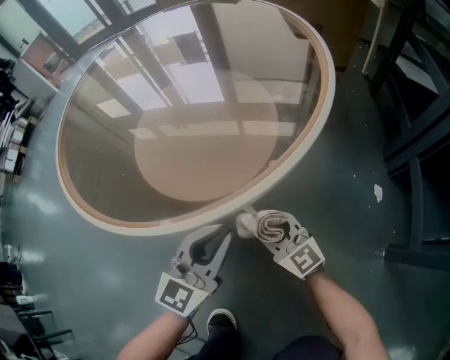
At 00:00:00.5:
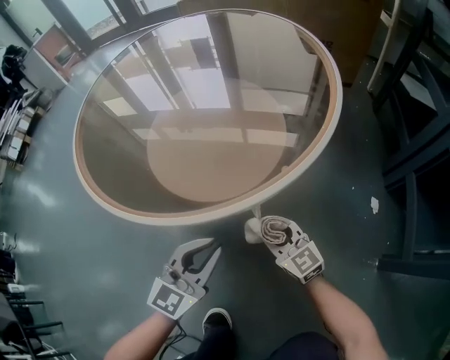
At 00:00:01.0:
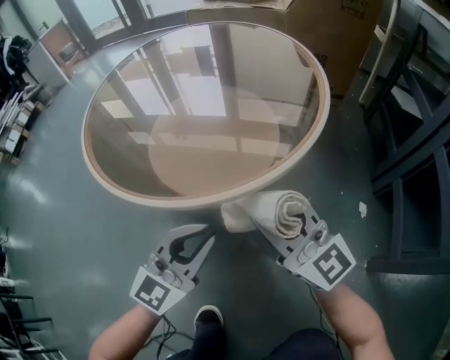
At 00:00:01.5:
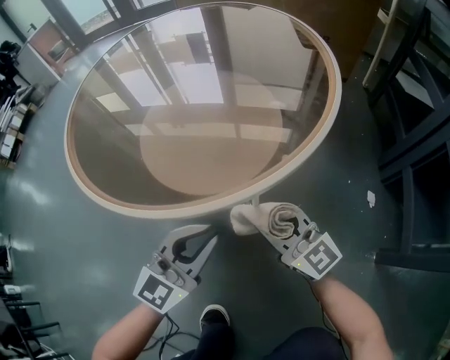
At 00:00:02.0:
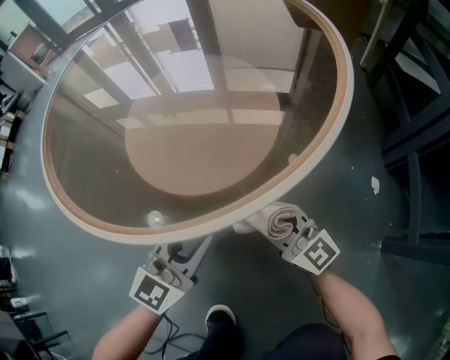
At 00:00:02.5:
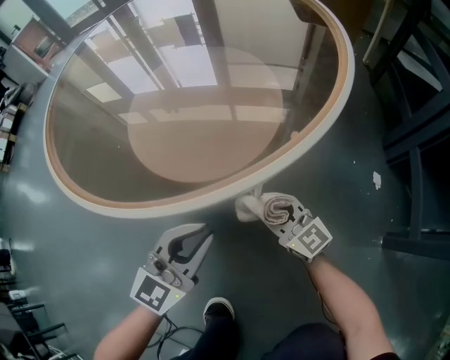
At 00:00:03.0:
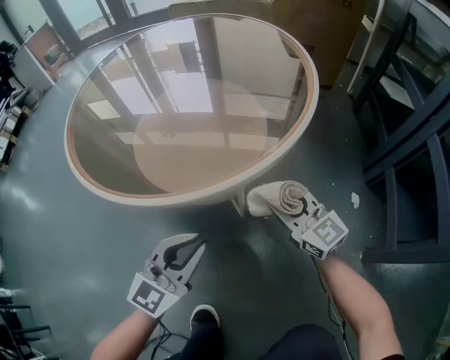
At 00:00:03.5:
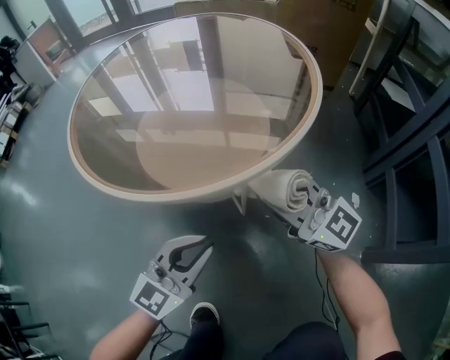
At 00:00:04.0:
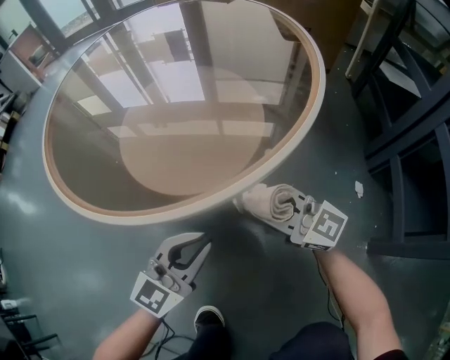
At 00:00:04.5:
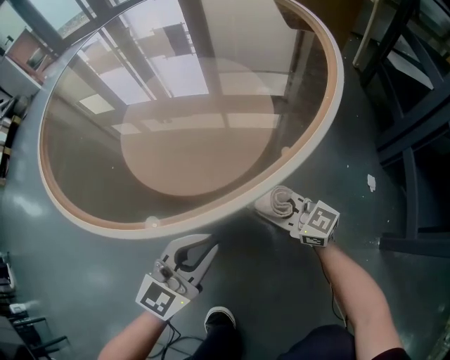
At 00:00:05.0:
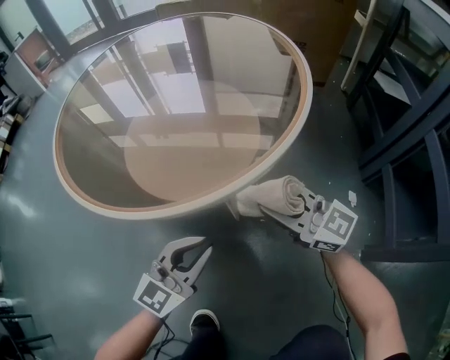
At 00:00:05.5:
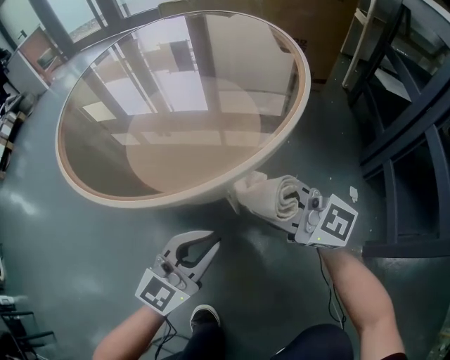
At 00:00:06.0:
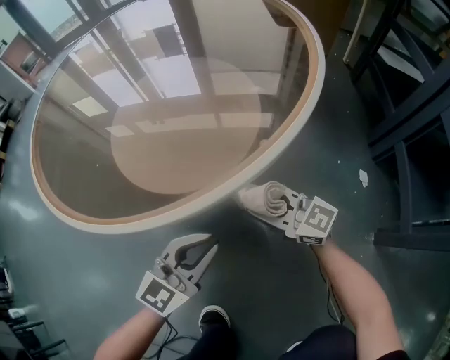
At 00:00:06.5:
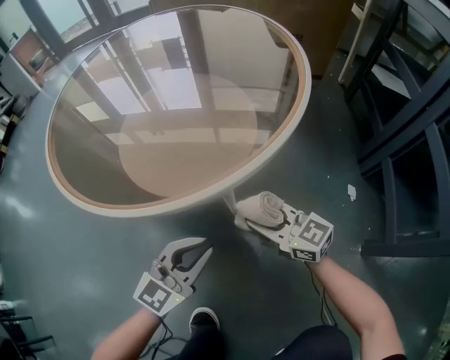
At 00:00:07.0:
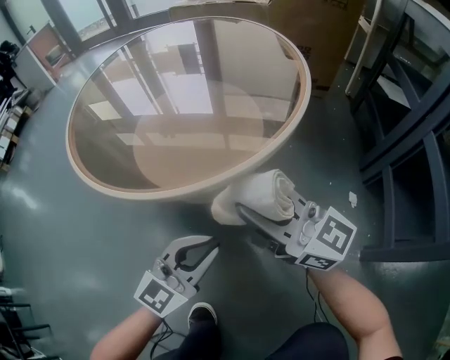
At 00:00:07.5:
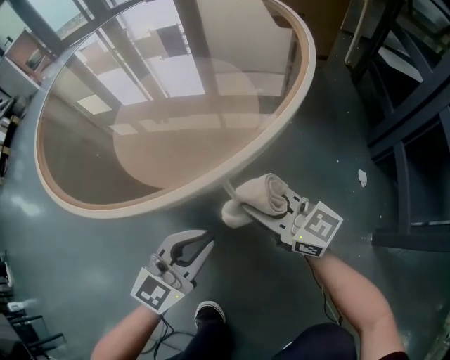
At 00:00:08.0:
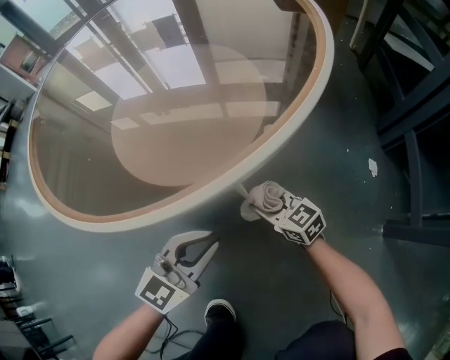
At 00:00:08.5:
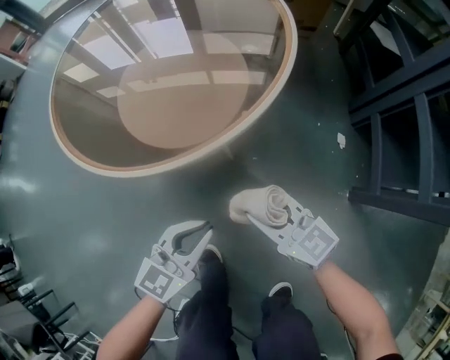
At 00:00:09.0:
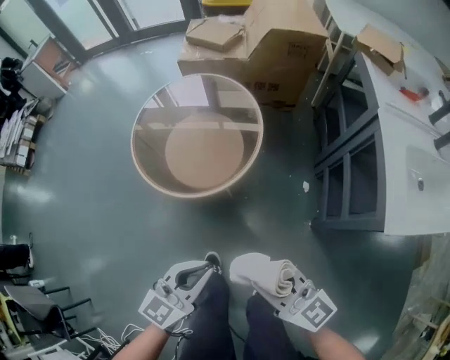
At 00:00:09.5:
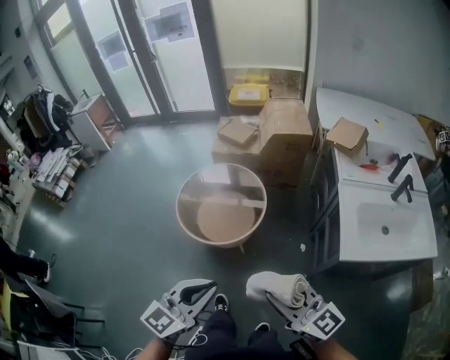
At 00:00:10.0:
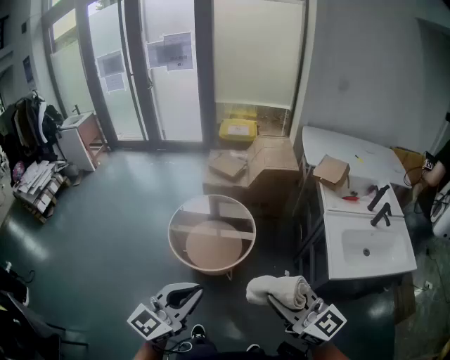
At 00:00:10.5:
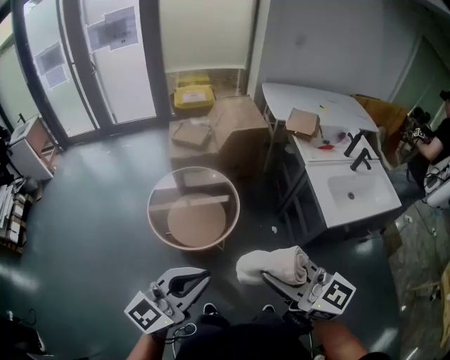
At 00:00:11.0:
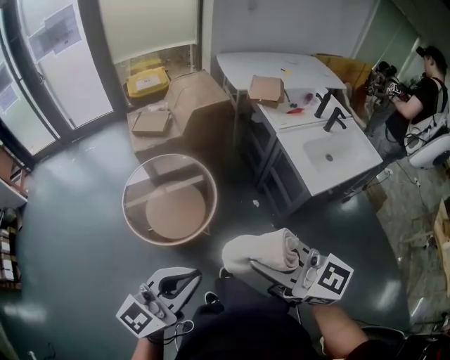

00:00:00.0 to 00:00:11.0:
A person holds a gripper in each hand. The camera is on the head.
00:00:00.0 to 00:00:02.0: The left gripper reaches approximately 10 cm upward, then returns, while the right gripper travels upward and back again, some 25 cm each way.
00:00:02.0 to 00:00:03.5: The left gripper heads backward, covering about 5 cm, while the right gripper travels upward by approximately 15 cm.
00:00:03.5 to 00:00:05.5: The right gripper reaches approximately 25 cm downward, then returns.
00:00:05.5 to 00:00:07.5: The left gripper swings up and down, approximately 10 cm each way, with 2 reversals. Meanwhile the right gripper swings up and down, approximately 20 cm each way, with 2 reversals, and swivels some 20 degrees.
00:00:07.5 to 00:00:09.0: The left gripper is displaced upward by some 50 cm. Meanwhile the right gripper is displaced upward and backward by roughly 60 cm.
00:00:09.0 to 00:00:11.0: The grippers both shift upward by about 40 cm. The right gripper changes its angle by approximately 20 degrees; the left gripper turns by roughly 40 degrees.

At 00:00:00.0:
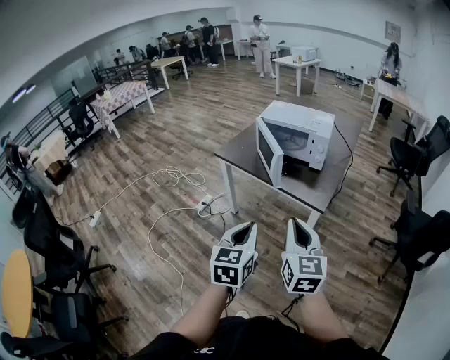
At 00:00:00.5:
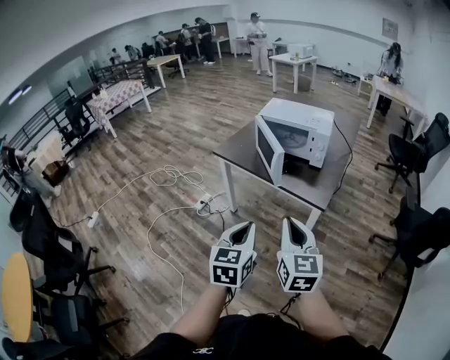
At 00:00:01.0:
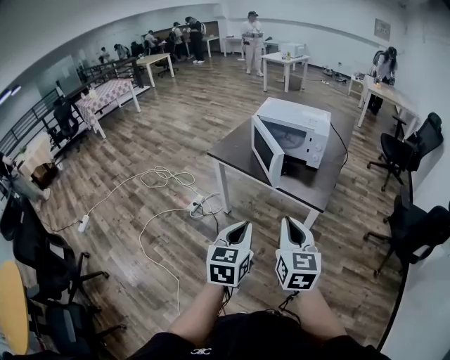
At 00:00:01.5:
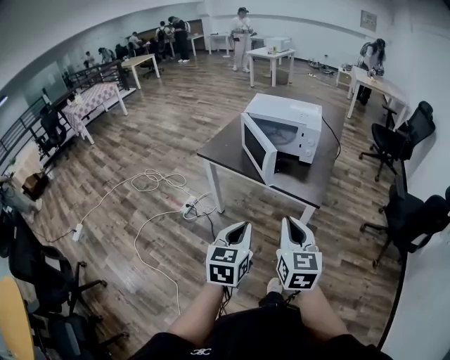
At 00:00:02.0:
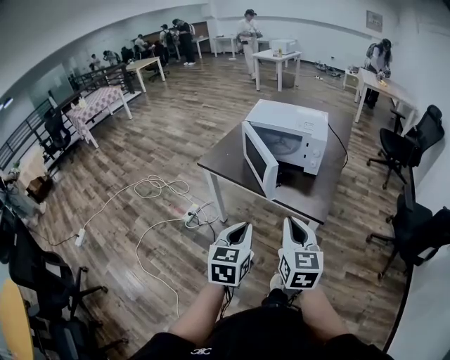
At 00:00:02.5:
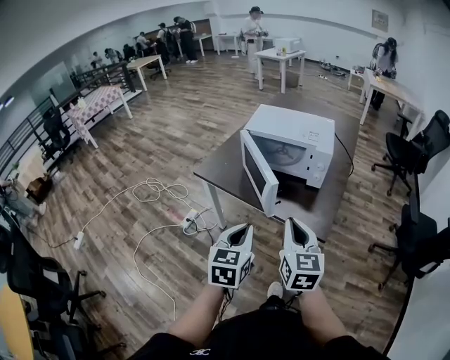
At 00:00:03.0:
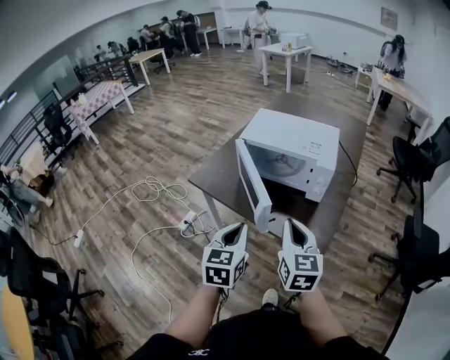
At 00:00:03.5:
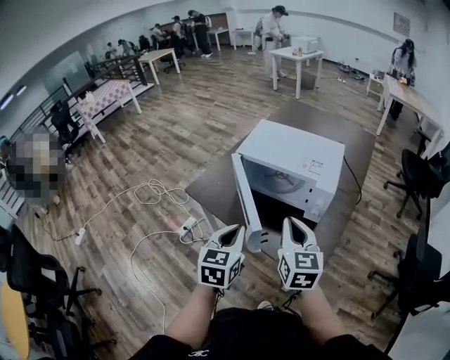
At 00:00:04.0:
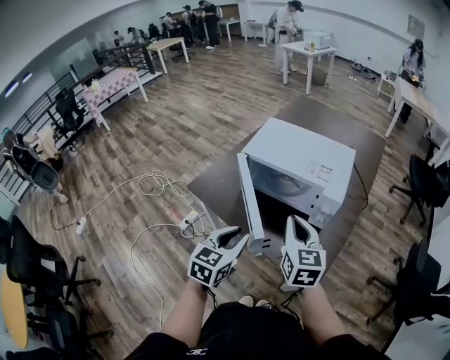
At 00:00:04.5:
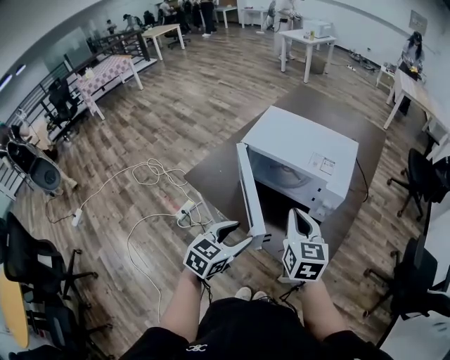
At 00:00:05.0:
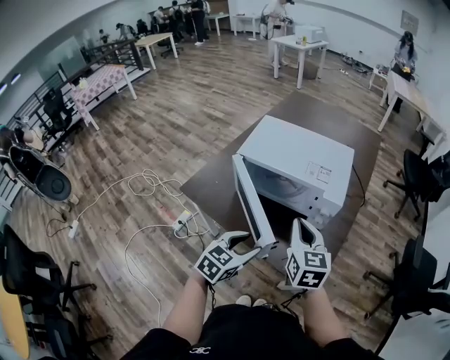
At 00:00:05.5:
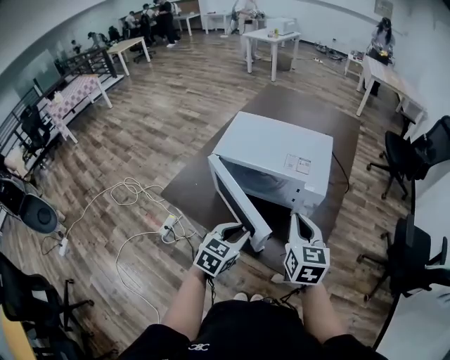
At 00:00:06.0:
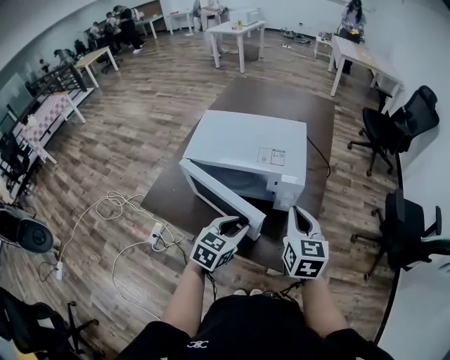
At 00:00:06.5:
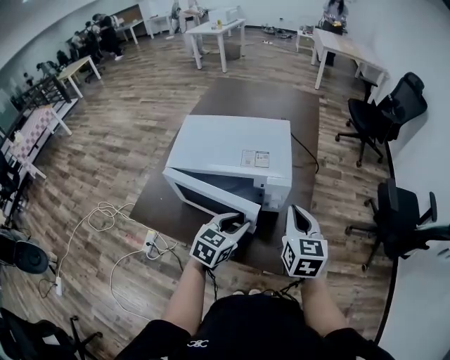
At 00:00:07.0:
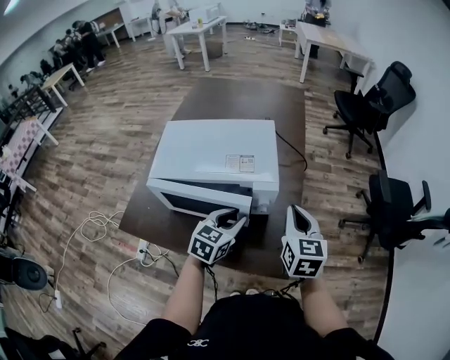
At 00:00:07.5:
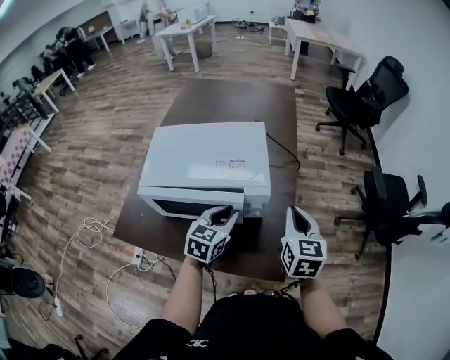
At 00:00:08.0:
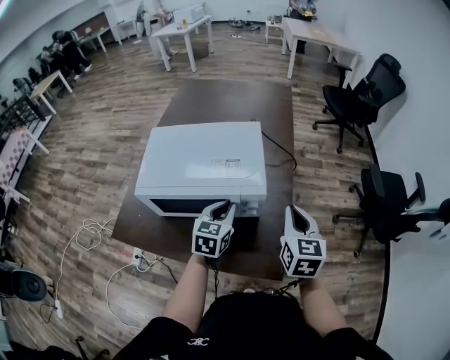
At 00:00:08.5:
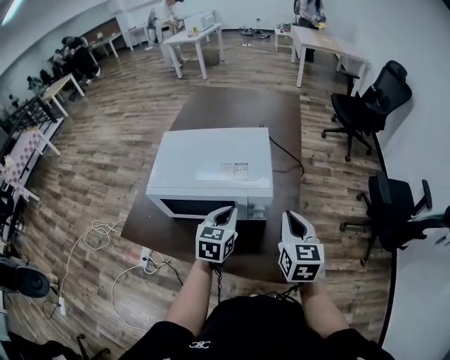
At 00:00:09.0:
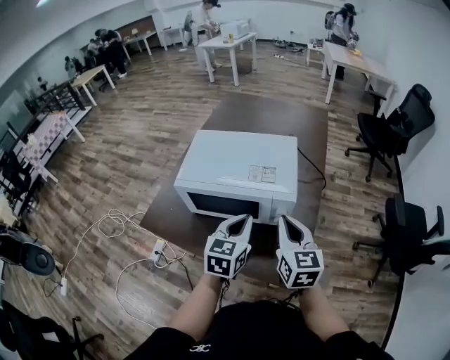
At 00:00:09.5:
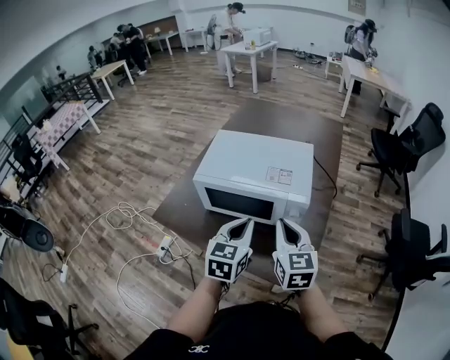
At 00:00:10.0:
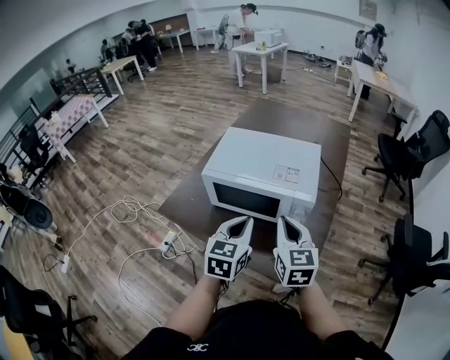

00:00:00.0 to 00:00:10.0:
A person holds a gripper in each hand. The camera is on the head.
00:00:00.0 to 00:00:02.0: The two grippers go some 15 cm forward.
00:00:02.0 to 00:00:04.0: Both grippers travel together forward, some 30 cm.
00:00:04.0 to 00:00:06.0: The right gripper travels to the right and forward by roughly 10 cm, and swivels about 20 degrees; the left gripper shifts about 15 cm forward, to the right and downward, rotates roughly 30 degrees, and opens, then closes again.
00:00:06.0 to 00:00:08.0: The left gripper shifts some 15 cm forward; the right gripper moves to the right and forward, roughly 10 cm.
00:00:08.0 to 00:00:10.0: The right gripper is displaced to the left and backward by about 20 cm, and turns by approximately 30 degrees, while the left gripper heads backward, upward and to the left, covering about 20 cm.

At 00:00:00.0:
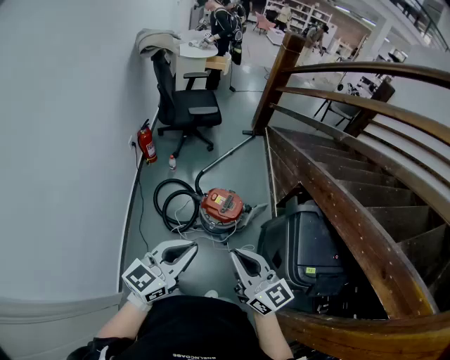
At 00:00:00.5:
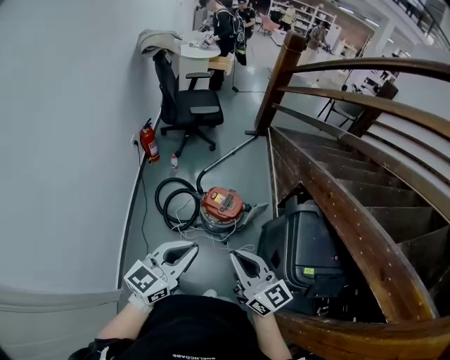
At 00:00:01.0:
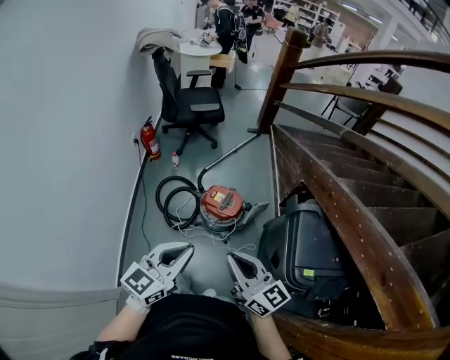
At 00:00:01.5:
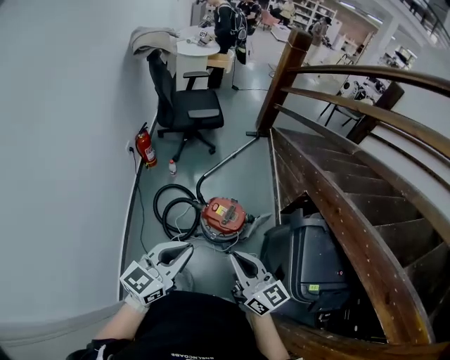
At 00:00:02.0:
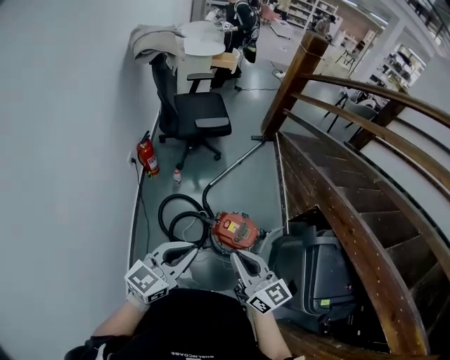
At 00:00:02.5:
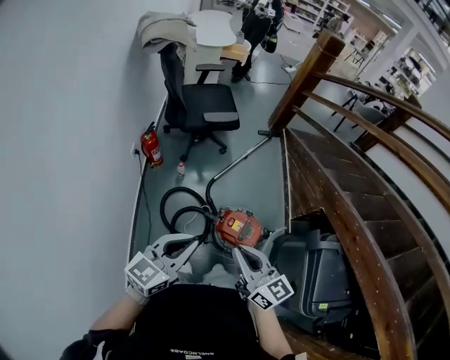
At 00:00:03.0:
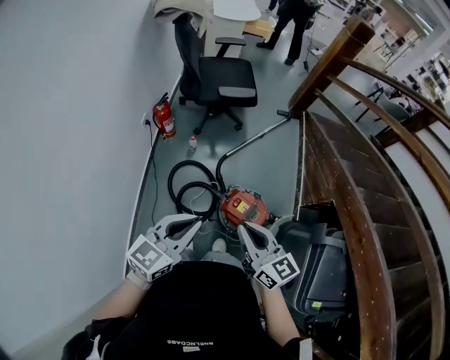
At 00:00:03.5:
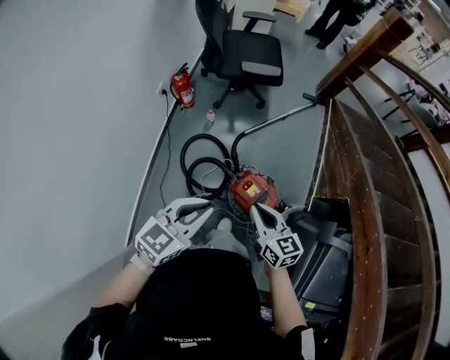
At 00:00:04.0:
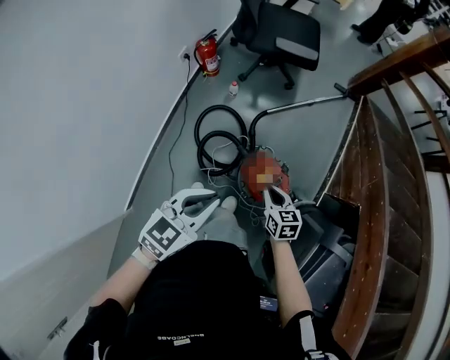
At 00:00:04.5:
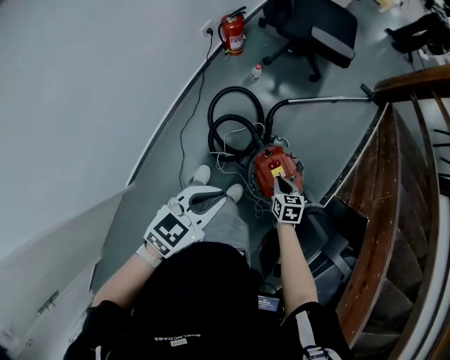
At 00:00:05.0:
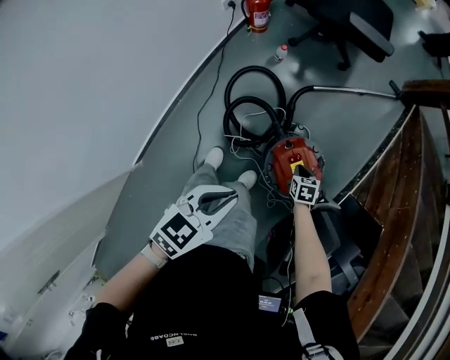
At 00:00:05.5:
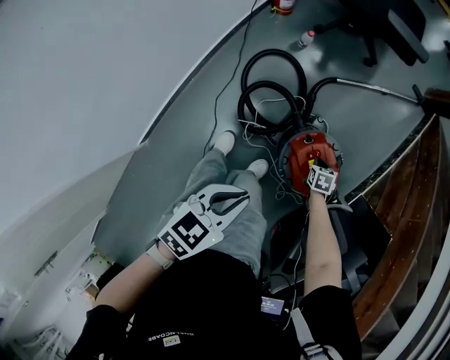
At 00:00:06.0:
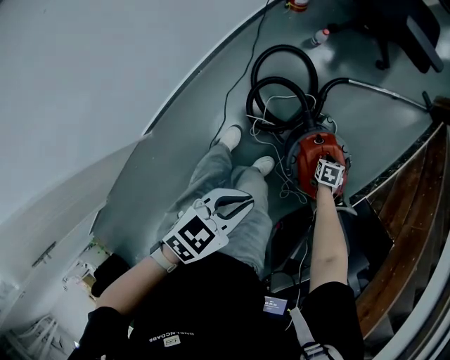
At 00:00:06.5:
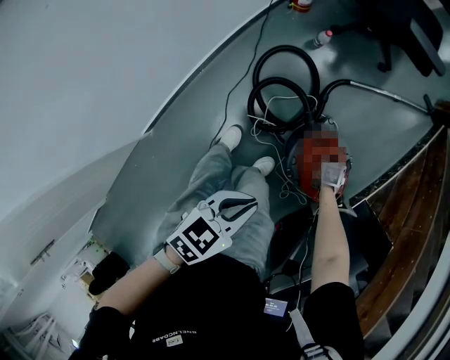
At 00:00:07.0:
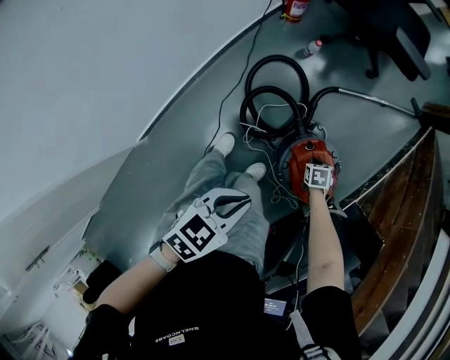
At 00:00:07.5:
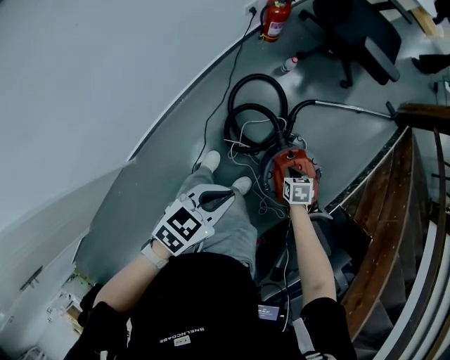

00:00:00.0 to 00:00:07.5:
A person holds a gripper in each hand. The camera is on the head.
00:00:00.0 to 00:00:02.0: Both grippers travel together forward and to the left, about 30 cm.
00:00:02.0 to 00:00:04.0: The right gripper heads downward and forward, covering about 40 cm, and angles its fingers downward, by about 40 degrees. The left gripper moves downward and forward, approximately 20 cm, and changes its angle by roughly 30 degrees.
00:00:04.0 to 00:00:05.5: The left gripper travels downward by about 20 cm, and swivels about 20 degrees, while the right gripper goes approximately 35 cm downward, and tilts its fingers roughly 30 degrees downward.
00:00:05.5 to 00:00:07.5: The right gripper travels upward by approximately 15 cm. Meanwhile the left gripper ends up some 5 cm from where it was.
